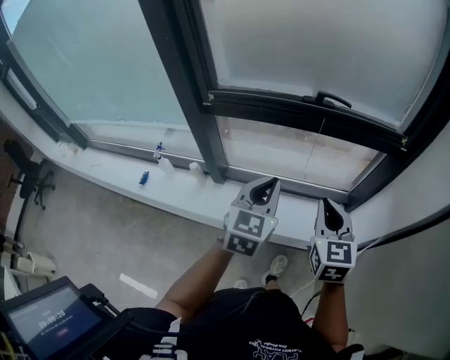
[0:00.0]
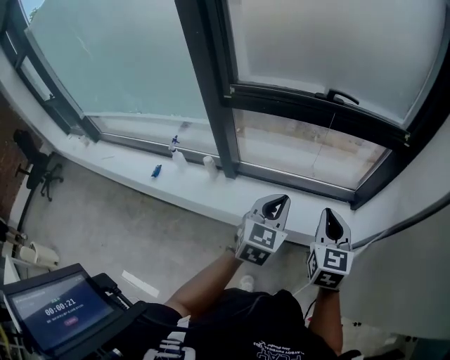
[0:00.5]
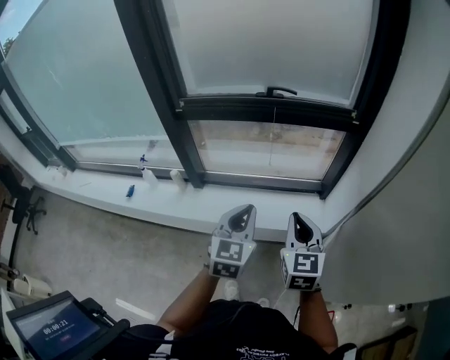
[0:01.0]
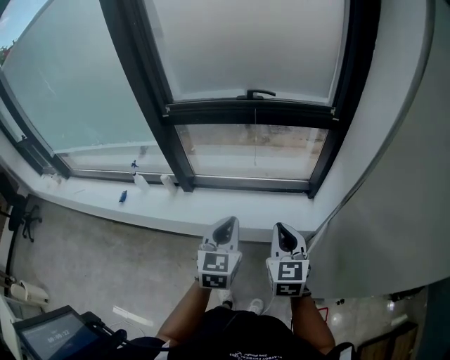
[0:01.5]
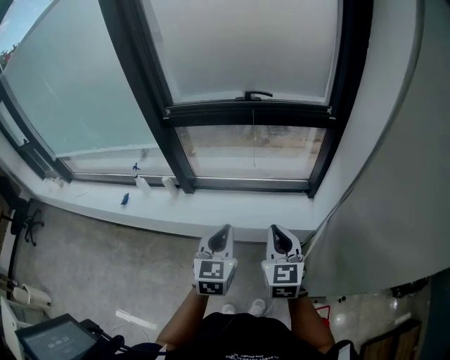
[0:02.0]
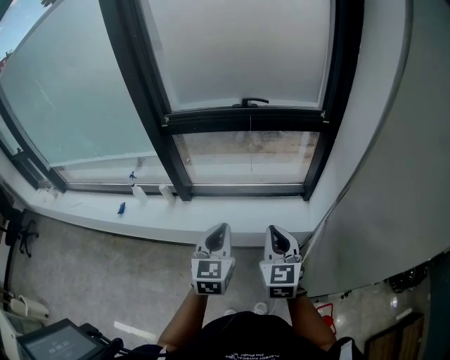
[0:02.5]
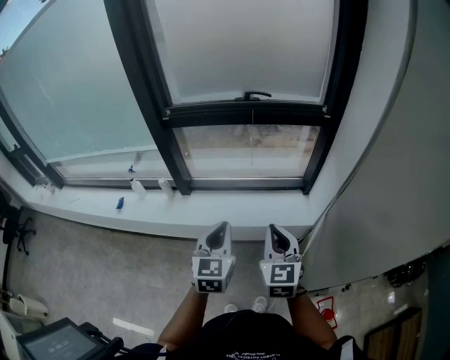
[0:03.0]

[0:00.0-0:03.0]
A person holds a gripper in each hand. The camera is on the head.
0:00.0 to 0:01.5: The grippers both shift backward and to the right by some 20 cm.
0:01.5 to 0:03.0: The left gripper goes about 5 cm to the left. The right gripper shifts by about 5 cm.

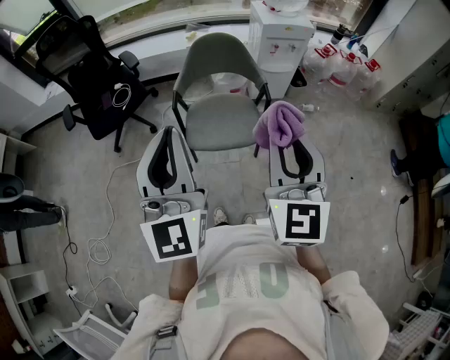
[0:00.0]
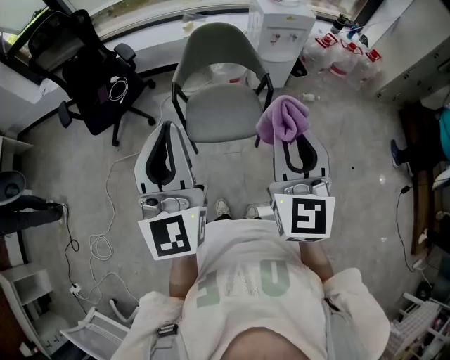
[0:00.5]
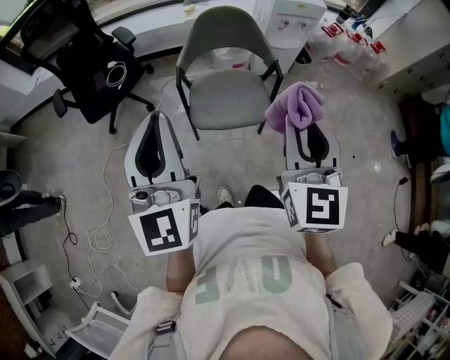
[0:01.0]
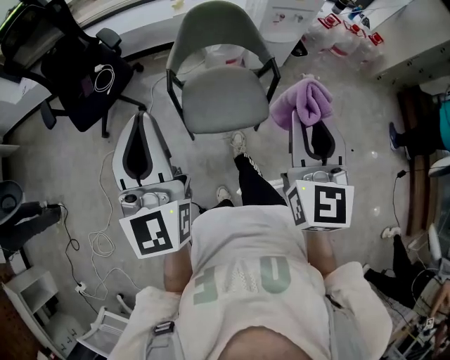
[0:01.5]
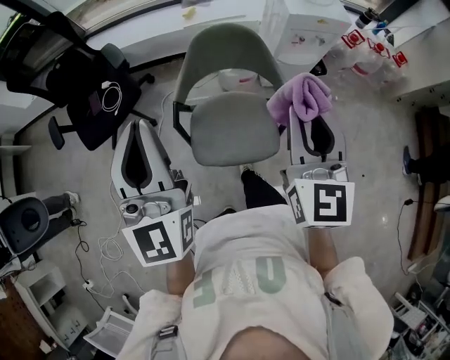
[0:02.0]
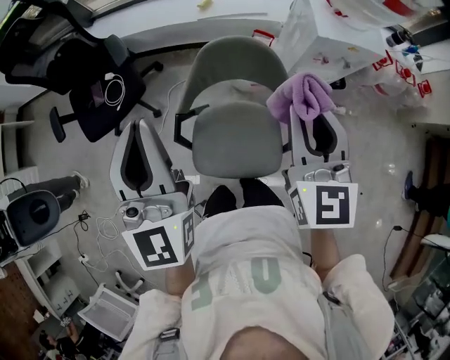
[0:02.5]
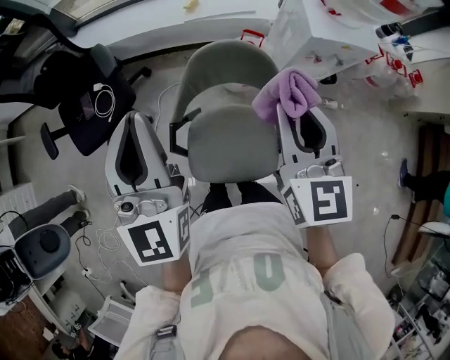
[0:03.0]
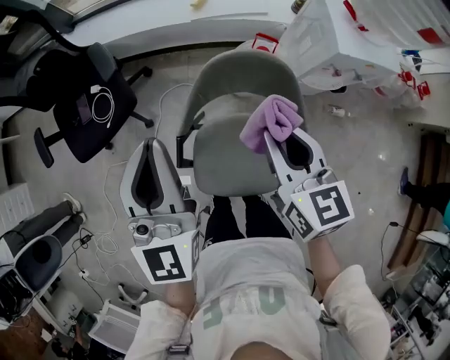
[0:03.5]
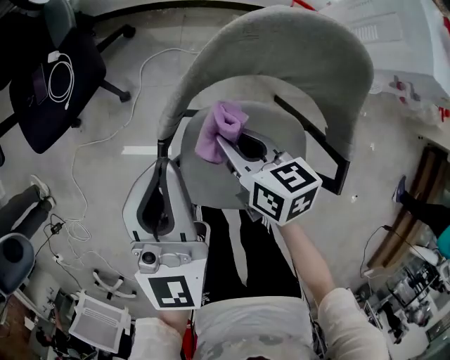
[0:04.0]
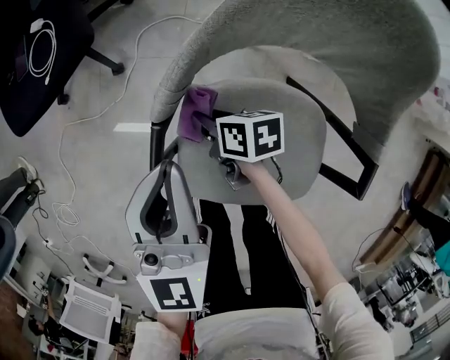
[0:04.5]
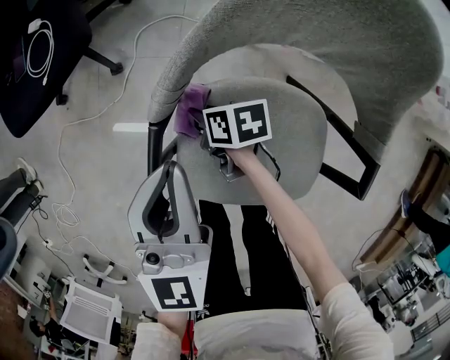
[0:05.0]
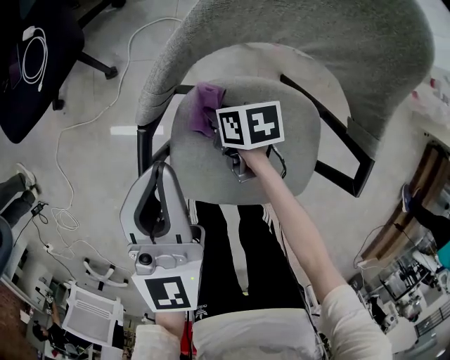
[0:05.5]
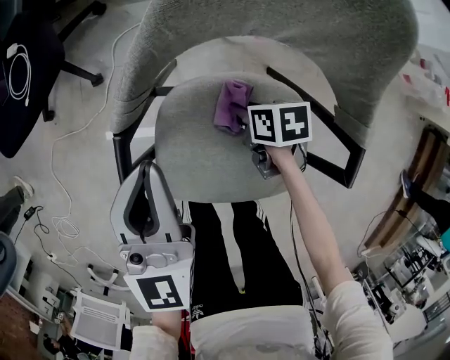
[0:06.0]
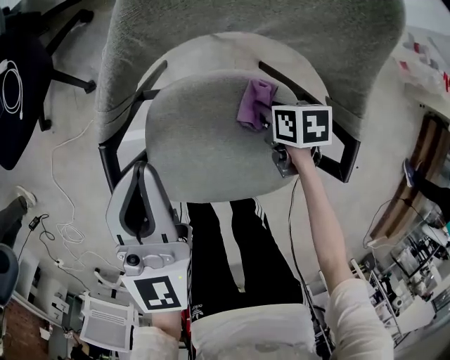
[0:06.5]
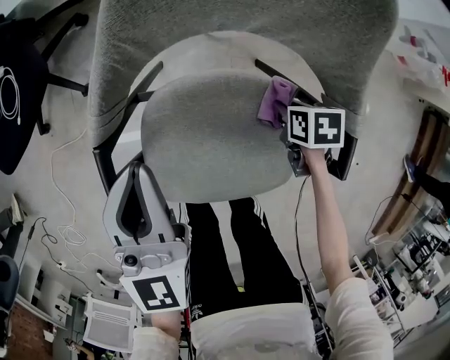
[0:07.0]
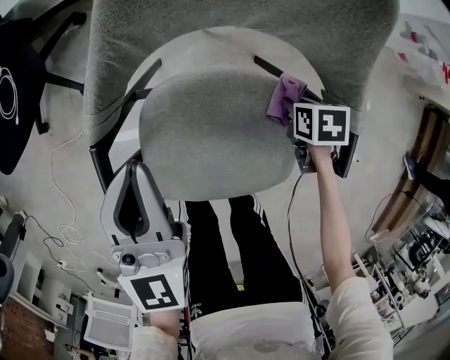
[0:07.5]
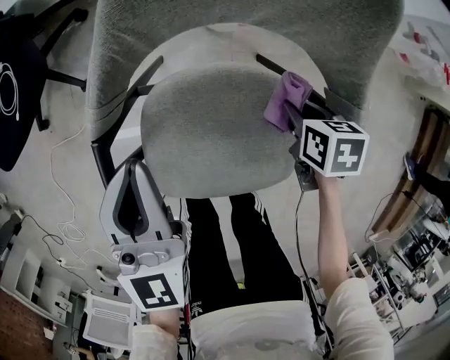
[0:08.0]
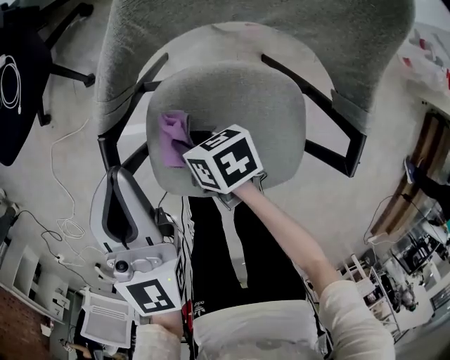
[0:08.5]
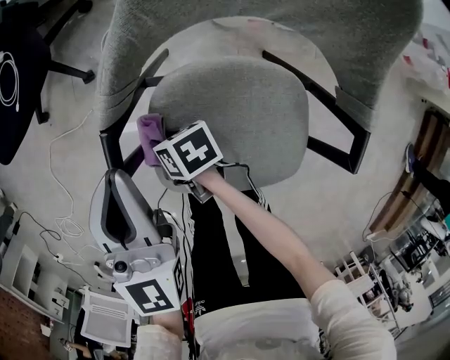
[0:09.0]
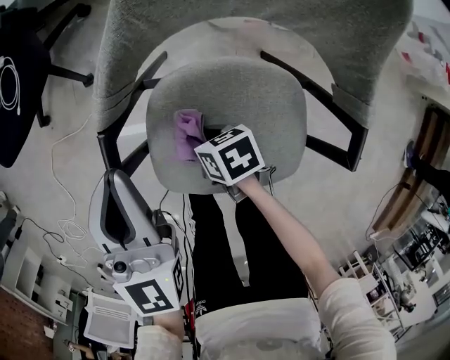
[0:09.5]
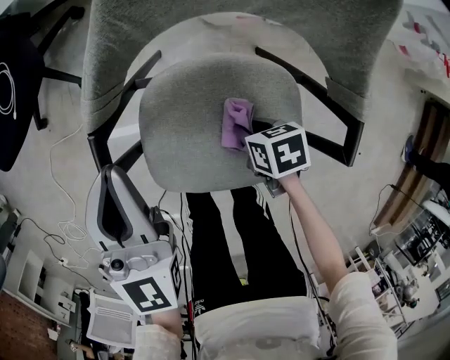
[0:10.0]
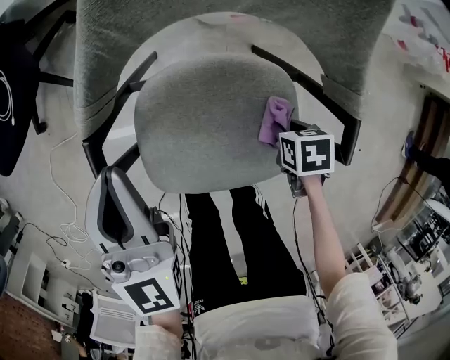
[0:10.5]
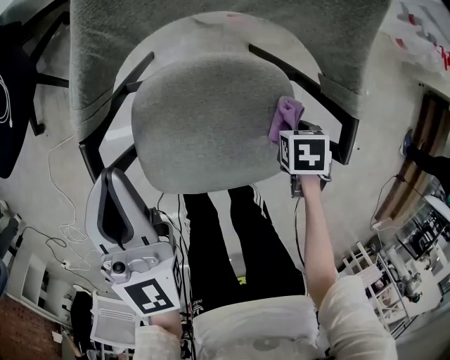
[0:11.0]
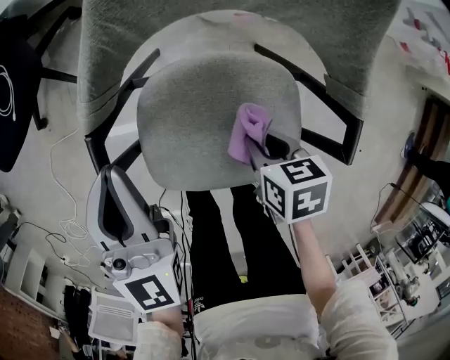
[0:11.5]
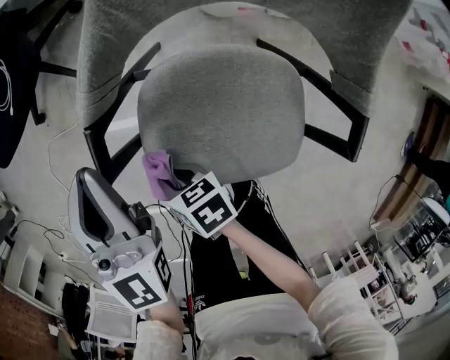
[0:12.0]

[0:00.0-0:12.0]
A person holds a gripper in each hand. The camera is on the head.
0:00.0 to 0:02.0: Both grippers move forward, roughly 25 cm.
0:02.0 to 0:04.0: Both grippers move downward and forward, roughly 40 cm. The right gripper points its fingers some 30 degrees further downward.
0:04.0 to 0:06.0: The left gripper moves downward, some 10 cm. The right gripper heads downward, covering approximately 20 cm, and turns by some 30 degrees.
0:06.0 to 0:08.0: The right gripper shifts by roughly 15 cm, and rotates about 20 degrees.
0:10.0 to 0:12.0: The right gripper moves some 25 cm, and turns by approximately 20 degrees.

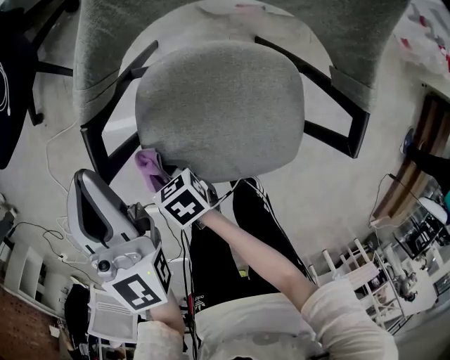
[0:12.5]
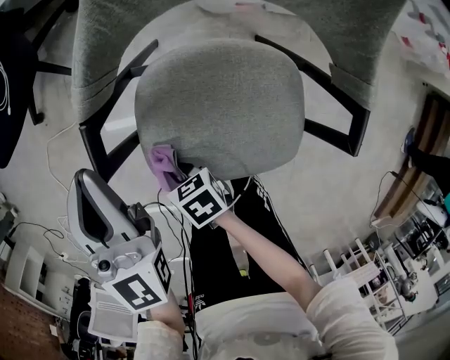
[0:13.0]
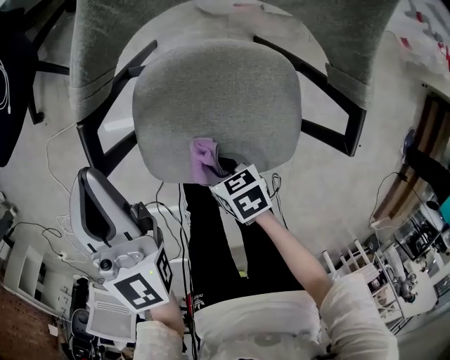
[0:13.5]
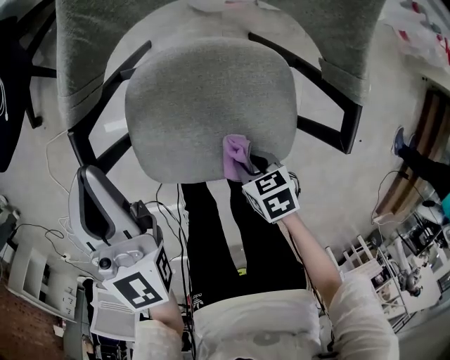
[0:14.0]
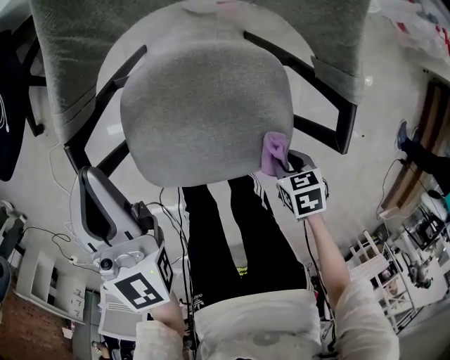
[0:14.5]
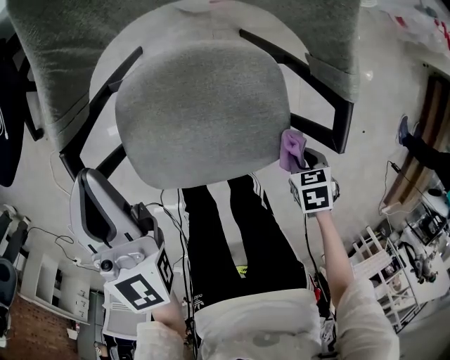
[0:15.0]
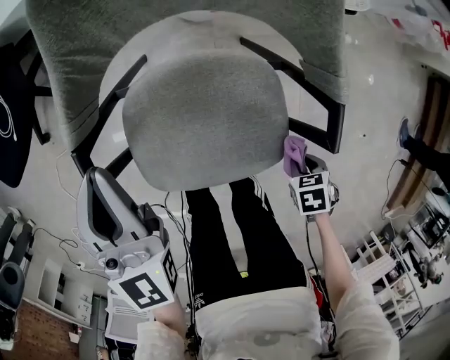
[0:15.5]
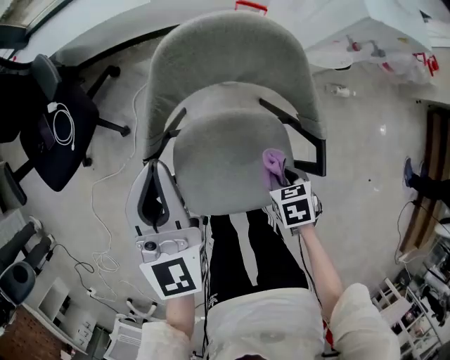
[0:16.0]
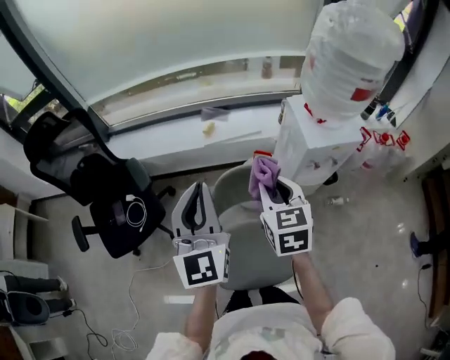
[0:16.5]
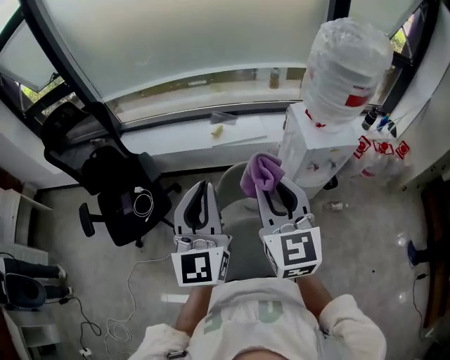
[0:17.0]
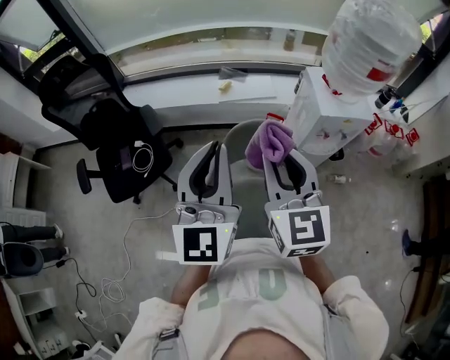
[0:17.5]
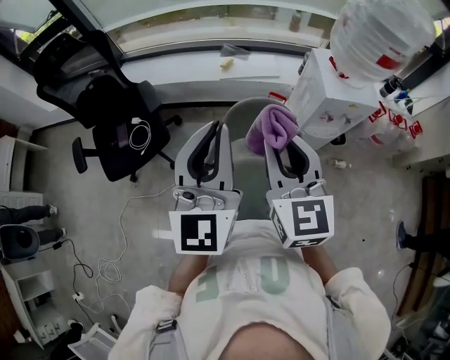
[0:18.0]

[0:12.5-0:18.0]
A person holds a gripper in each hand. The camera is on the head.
0:12.5 to 0:14.5: The left gripper changes place by approximately 5 cm; the right gripper moves about 35 cm, and angles its fingers downward, by approximately 30 degrees.
0:14.5 to 0:16.0: The right gripper shifts by about 15 cm. Meanwhile the left gripper heads upward, covering some 10 cm.
0:16.0 to 0:18.0: The right gripper heads upward, covering some 50 cm, and tips its fingers upward by about 70 degrees; the left gripper travels upward by roughly 35 cm, and turns by about 20 degrees.

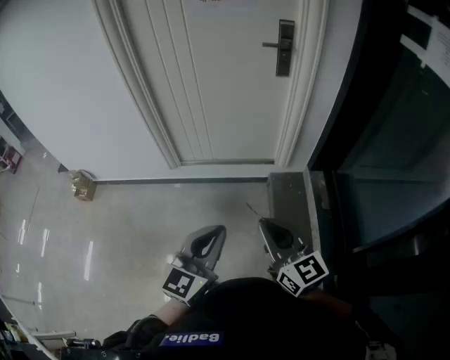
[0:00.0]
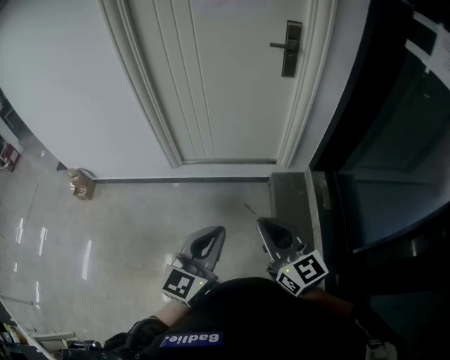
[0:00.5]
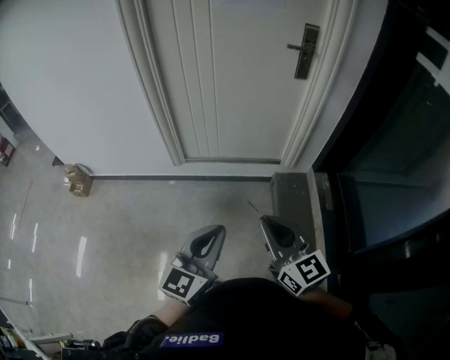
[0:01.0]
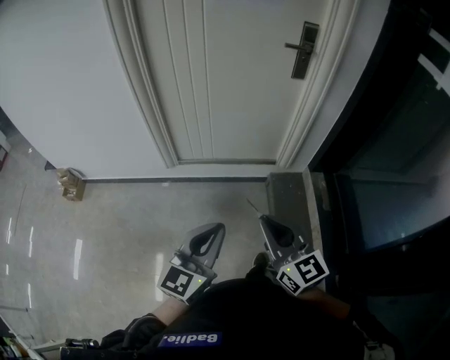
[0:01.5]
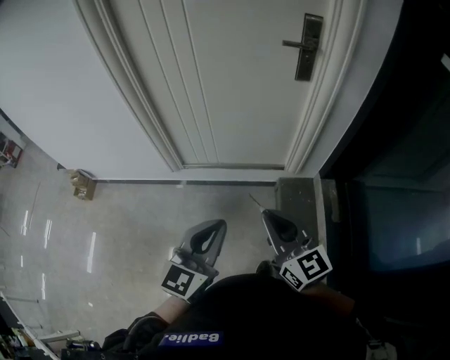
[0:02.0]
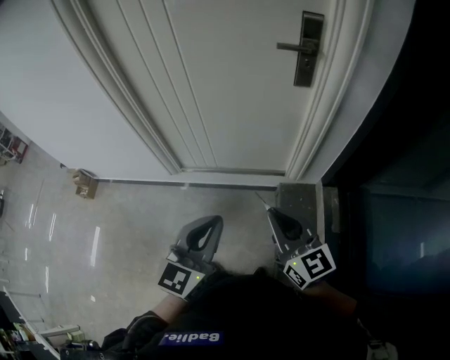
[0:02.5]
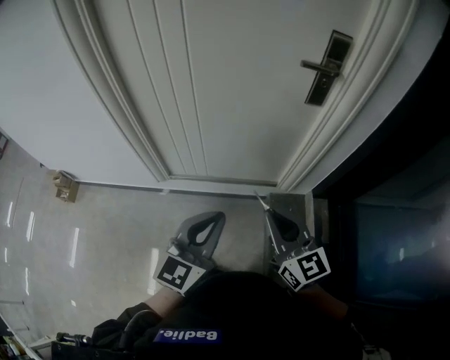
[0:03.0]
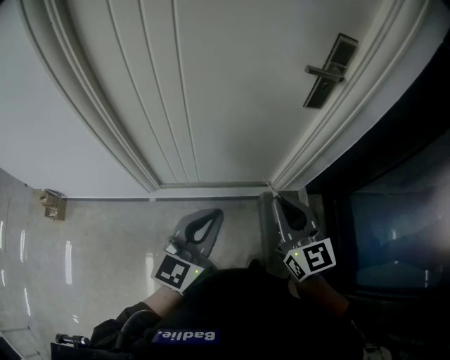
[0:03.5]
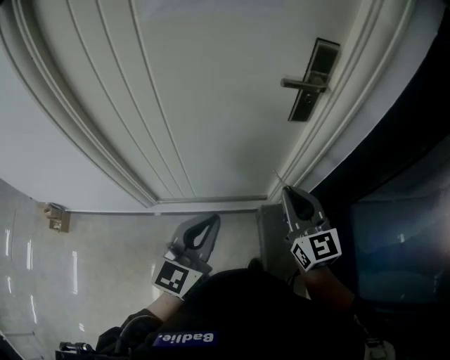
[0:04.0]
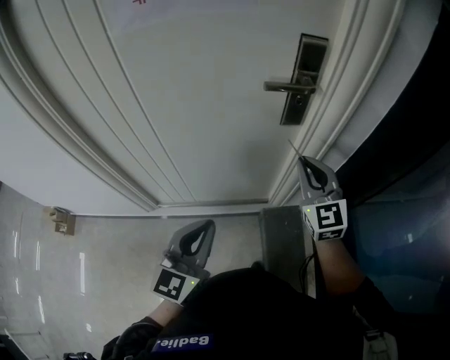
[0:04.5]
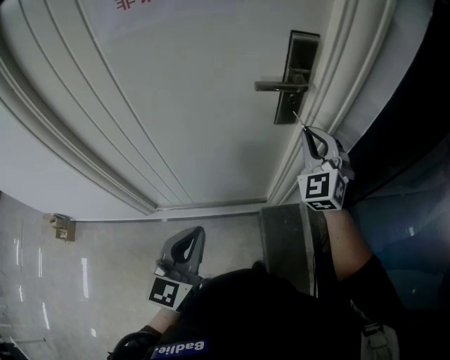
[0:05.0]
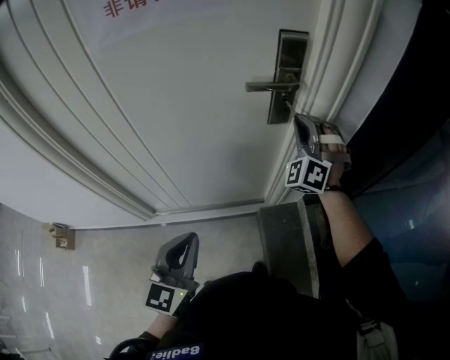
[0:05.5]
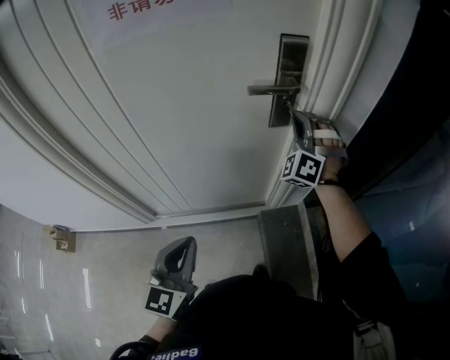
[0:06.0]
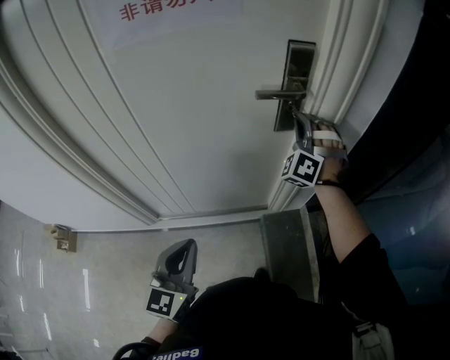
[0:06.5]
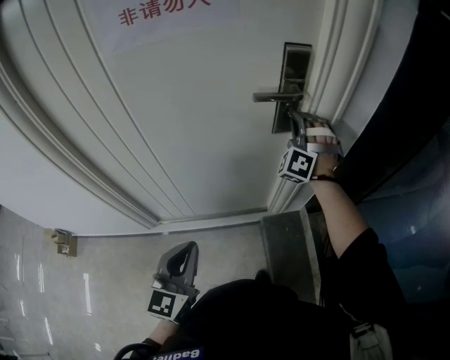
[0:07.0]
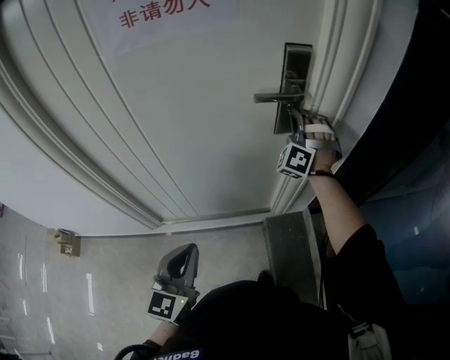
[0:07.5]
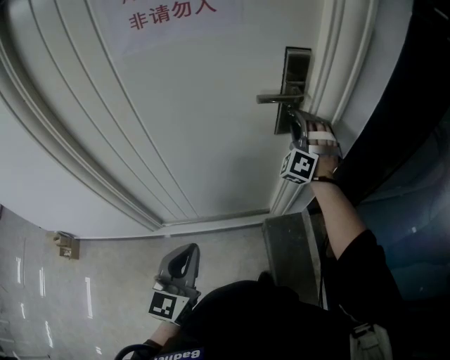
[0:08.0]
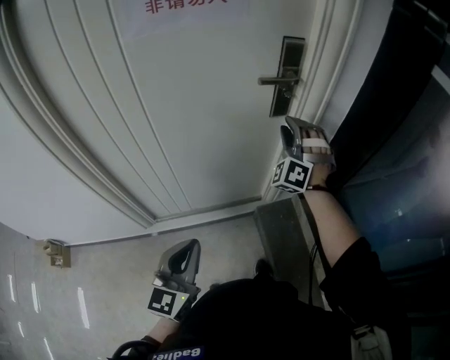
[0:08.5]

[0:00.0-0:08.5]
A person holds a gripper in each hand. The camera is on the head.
0:00.0 to 0:02.0: The two grippers go about 15 cm forward.
0:02.0 to 0:04.0: Both grippers travel together forward, roughly 30 cm.
0:04.0 to 0:06.5: The right gripper moves forward, about 25 cm, and rotates around the line of its fingers by approximately 80 degrees, counterclockwise from behind.
0:06.5 to 0:08.5: The two grippers go roughly 10 cm backward. The right gripper opens up.
